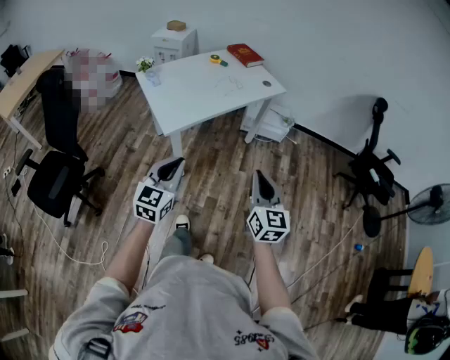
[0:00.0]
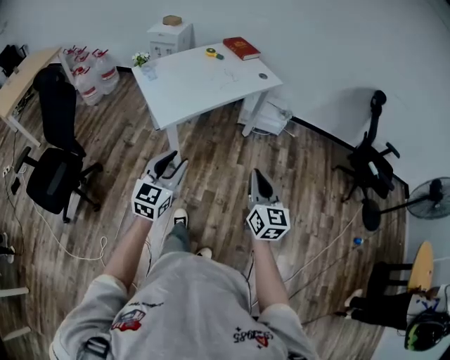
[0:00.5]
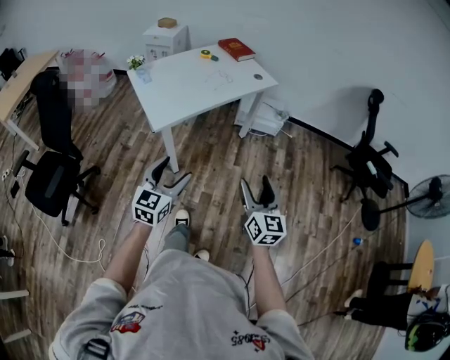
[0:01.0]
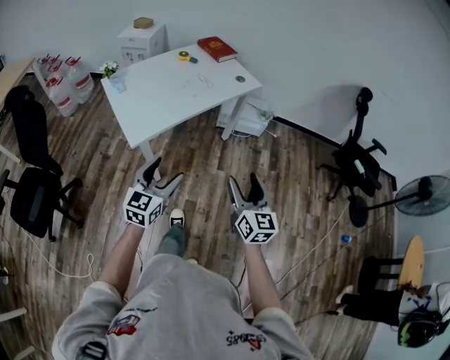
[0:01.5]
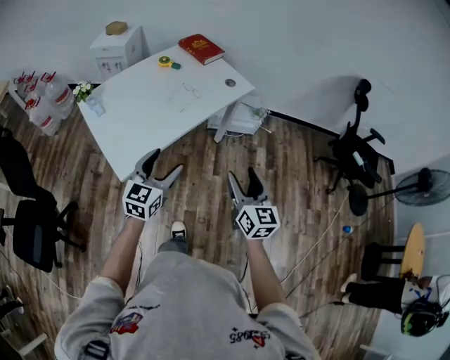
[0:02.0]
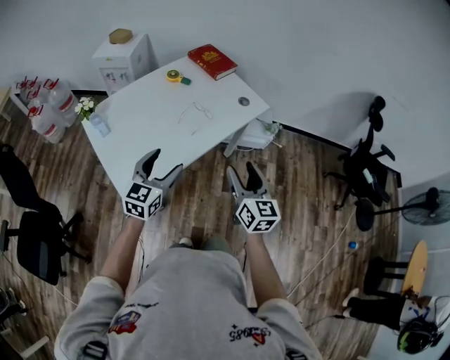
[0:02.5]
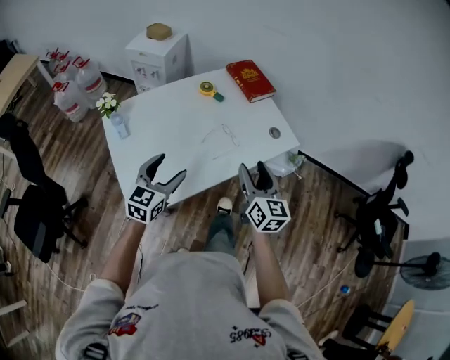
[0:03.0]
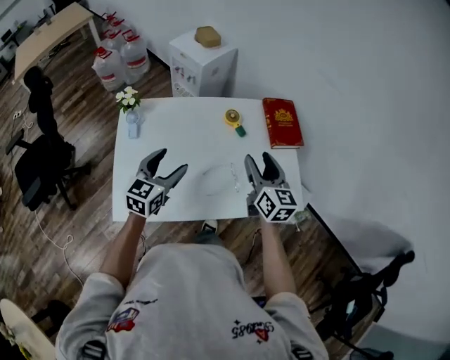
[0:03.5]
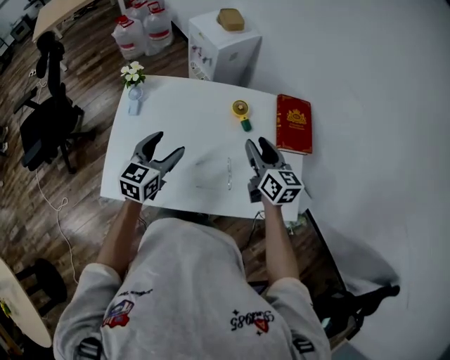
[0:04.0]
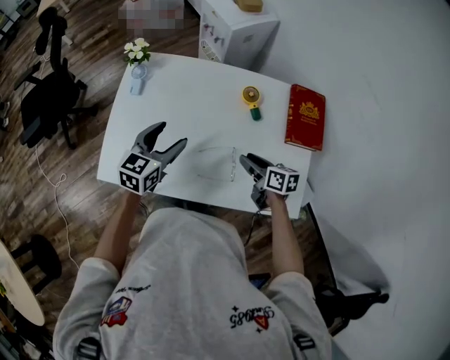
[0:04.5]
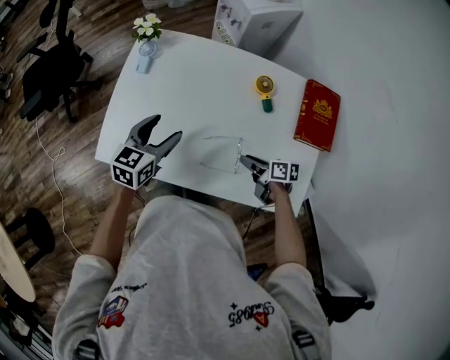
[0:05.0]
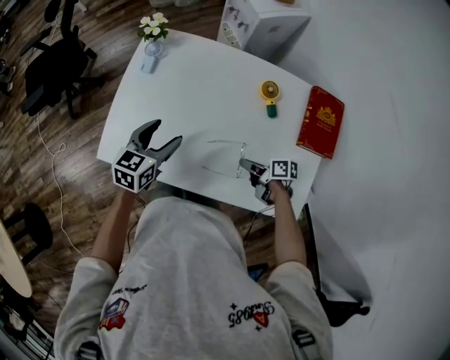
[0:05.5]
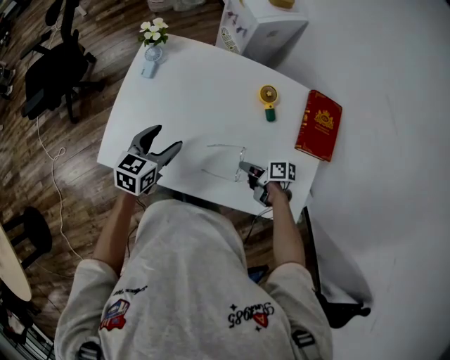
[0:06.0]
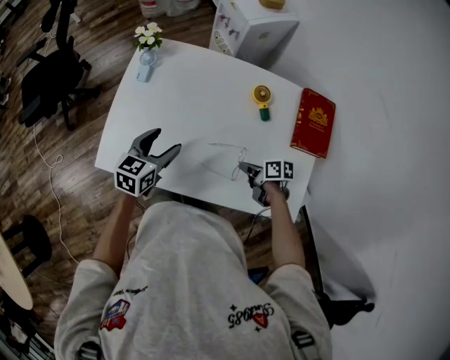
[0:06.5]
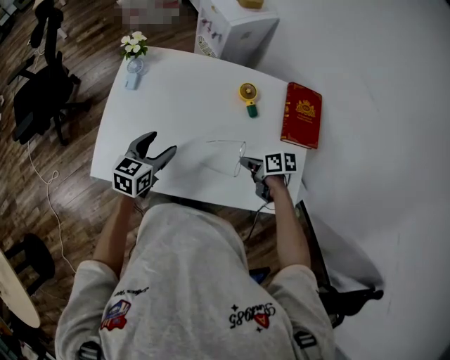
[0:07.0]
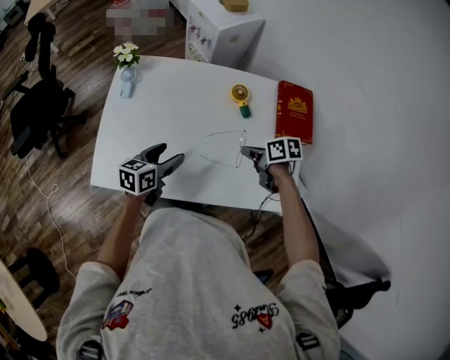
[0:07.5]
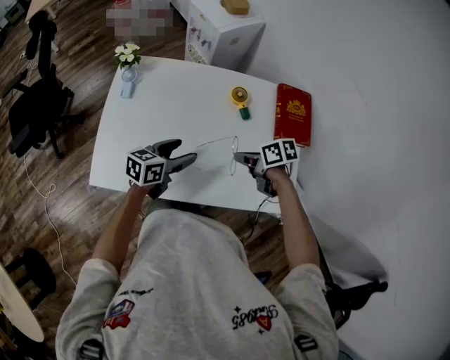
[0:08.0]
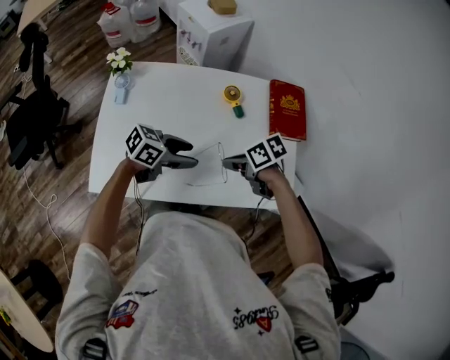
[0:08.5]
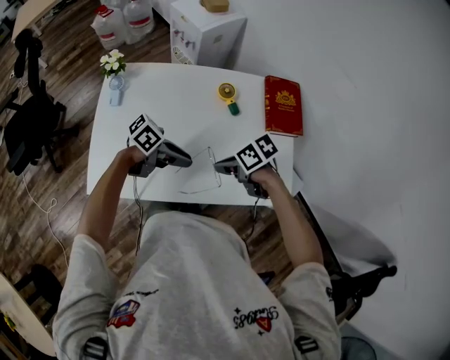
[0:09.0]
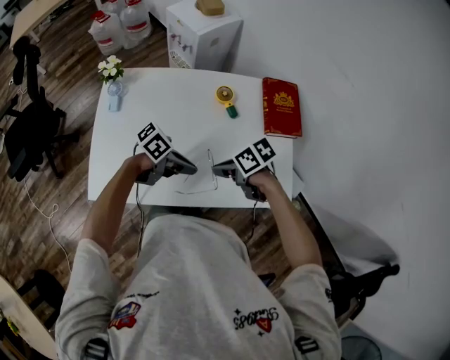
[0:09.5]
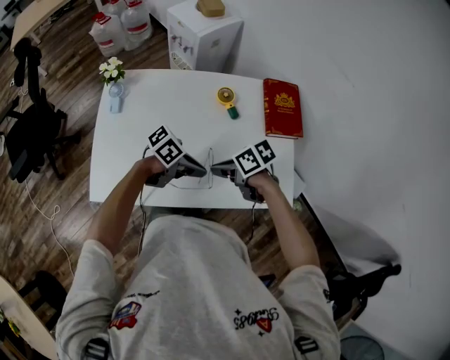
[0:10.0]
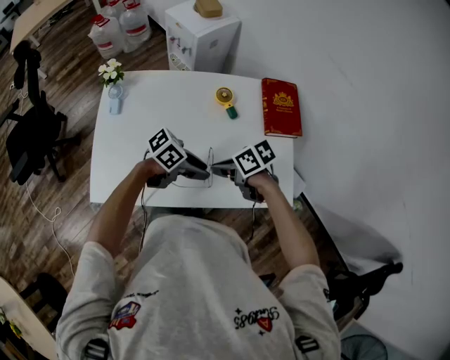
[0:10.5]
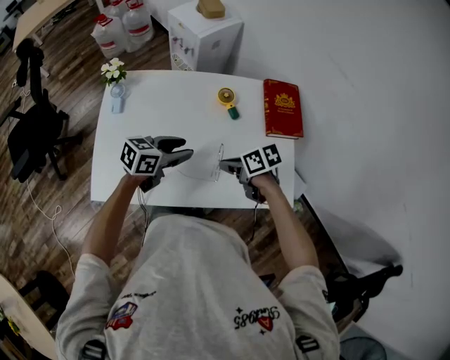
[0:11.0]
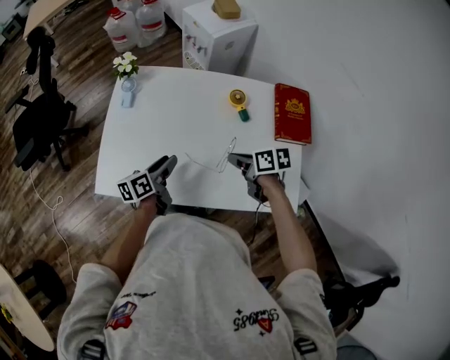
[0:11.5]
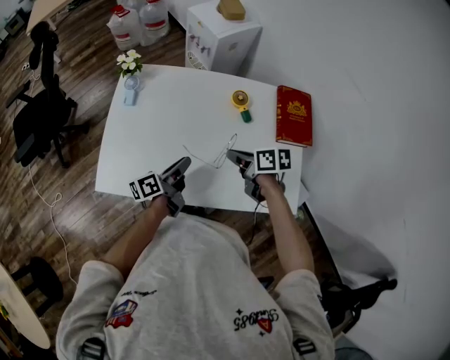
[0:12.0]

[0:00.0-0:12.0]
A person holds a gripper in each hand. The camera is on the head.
0:00.0 to 0:02.0: The grippers both shift forward by approximately 30 cm. The right gripper opens; the left gripper opens.
0:02.0 to 0:04.0: The pair of grippers is taken roughly 60 cm. The left gripper swivels some 50 degrees, while the right gripper changes its angle by some 50 degrees.
0:04.0 to 0:06.0: The right gripper is displaced downward by roughly 25 cm, turns by roughly 60 degrees, and closes up. Meanwhile the left gripper shifts about 10 cm downward.
0:06.0 to 0:08.0: The right gripper is displaced upward by about 15 cm. Meanwhile the left gripper moves approximately 10 cm, and turns by about 30 degrees.
0:08.0 to 0:10.0: The left gripper shifts by approximately 10 cm, changes its angle by roughly 50 degrees, and closes up, while the right gripper ends up some 10 cm from where it was.
0:10.0 to 0:12.0: The left gripper moves about 10 cm, and turns by roughly 80 degrees; the right gripper shifts by roughly 5 cm, and changes its angle by roughly 20 degrees.

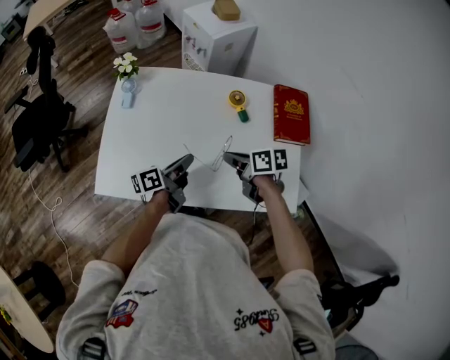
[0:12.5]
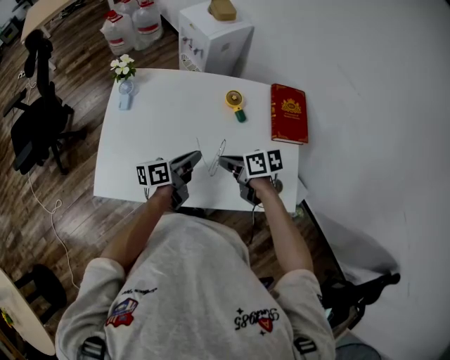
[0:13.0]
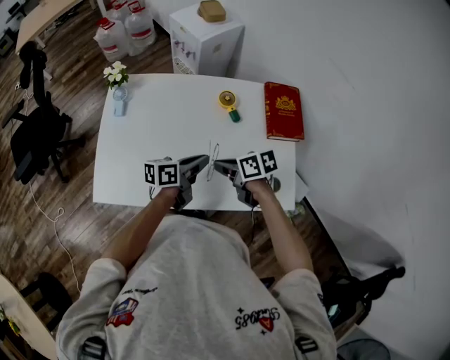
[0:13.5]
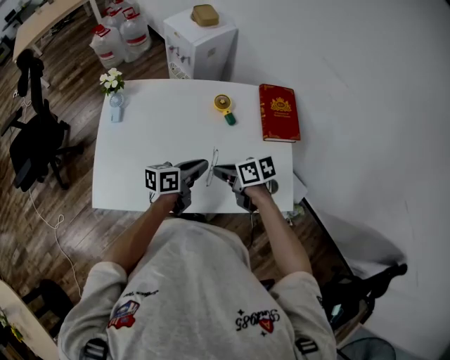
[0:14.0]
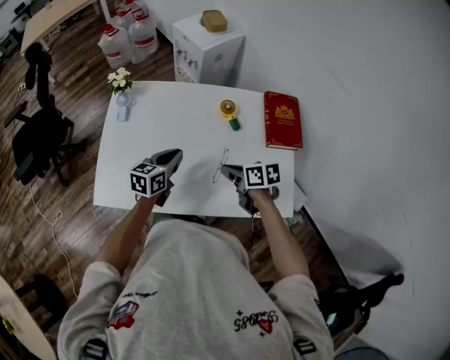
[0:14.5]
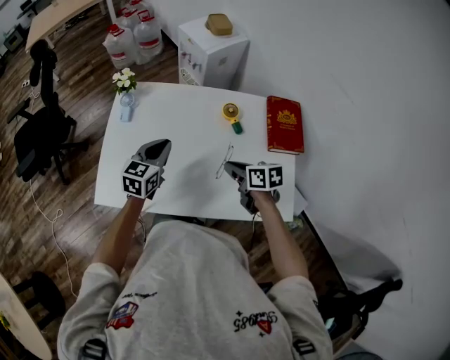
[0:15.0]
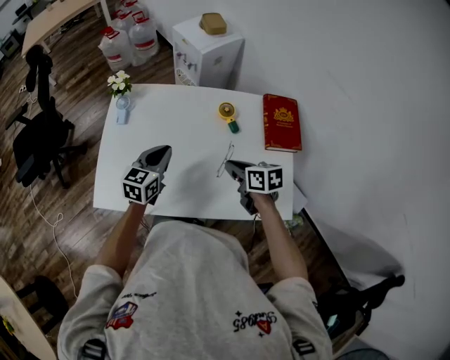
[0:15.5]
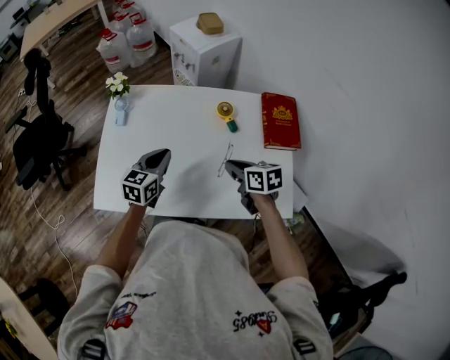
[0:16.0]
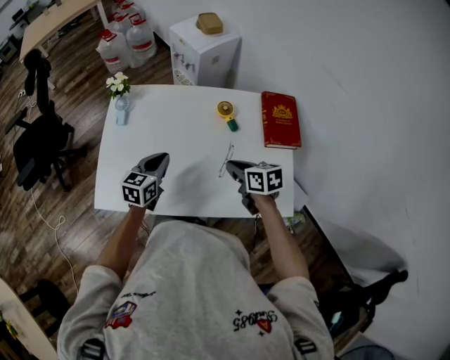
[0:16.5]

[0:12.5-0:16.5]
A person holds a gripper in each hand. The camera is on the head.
0:12.5 to 0:14.5: The left gripper rotates around the line of its fingers by about 40 degrees, clockwise from behind.

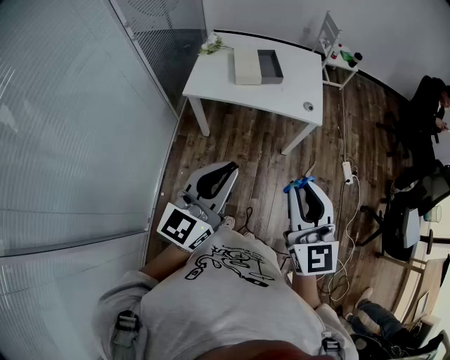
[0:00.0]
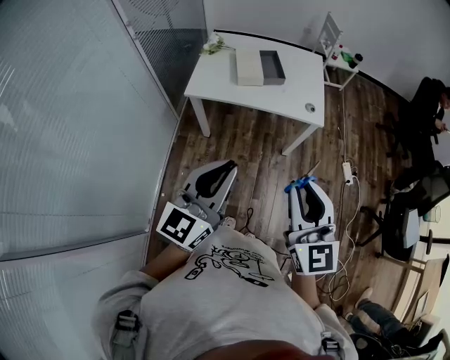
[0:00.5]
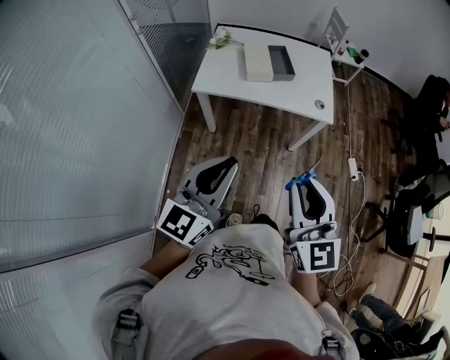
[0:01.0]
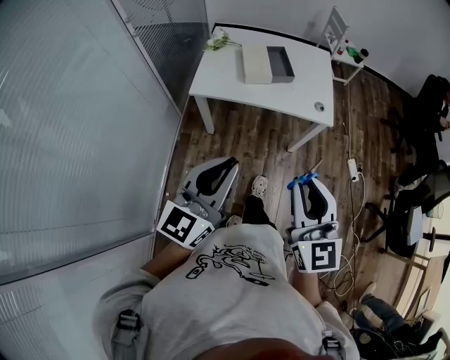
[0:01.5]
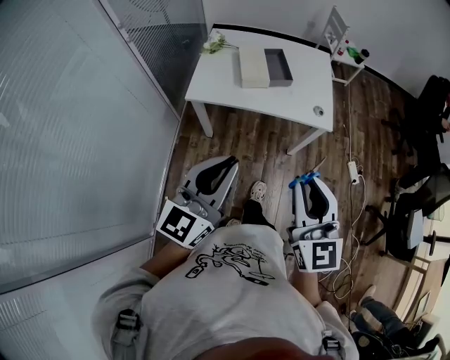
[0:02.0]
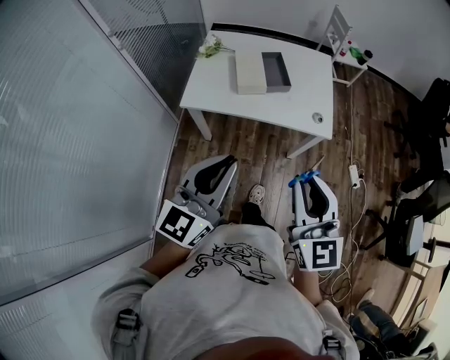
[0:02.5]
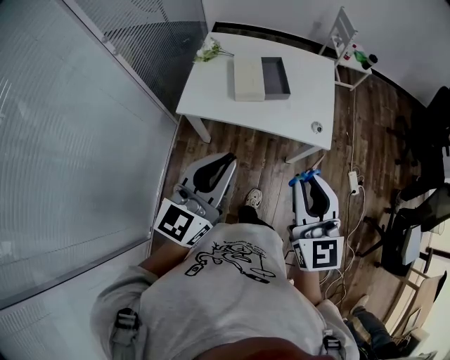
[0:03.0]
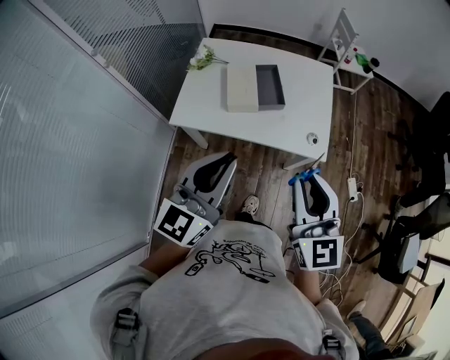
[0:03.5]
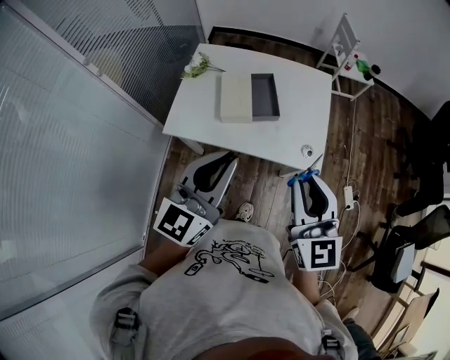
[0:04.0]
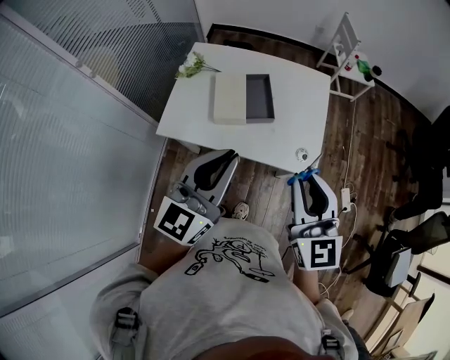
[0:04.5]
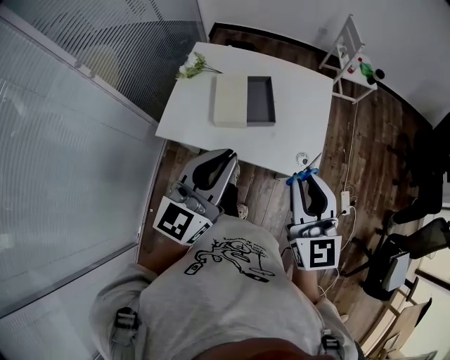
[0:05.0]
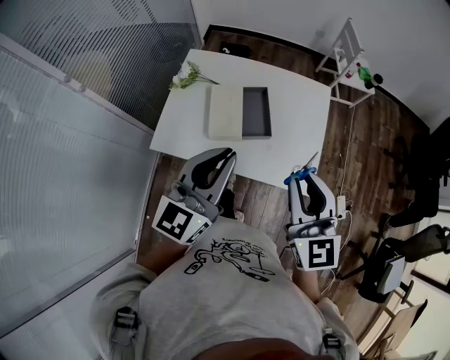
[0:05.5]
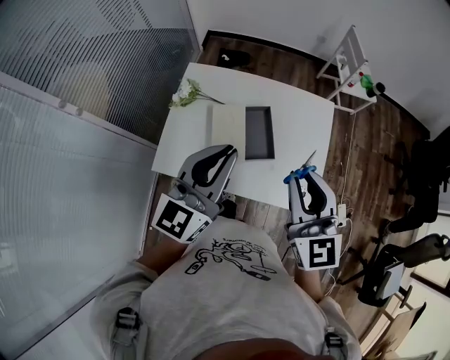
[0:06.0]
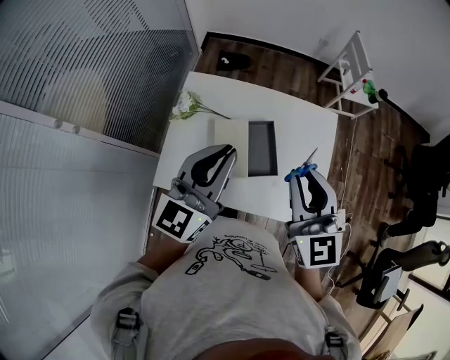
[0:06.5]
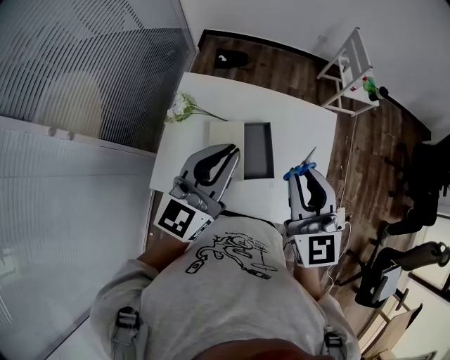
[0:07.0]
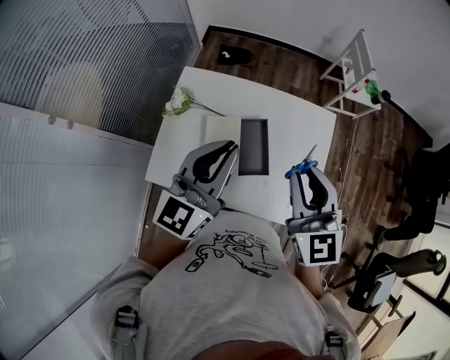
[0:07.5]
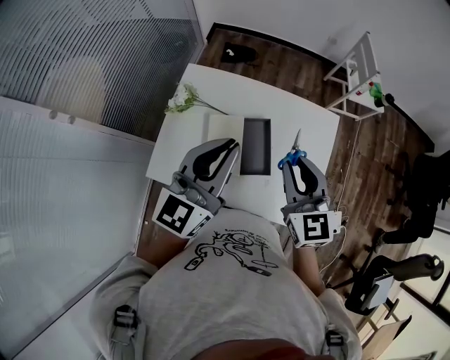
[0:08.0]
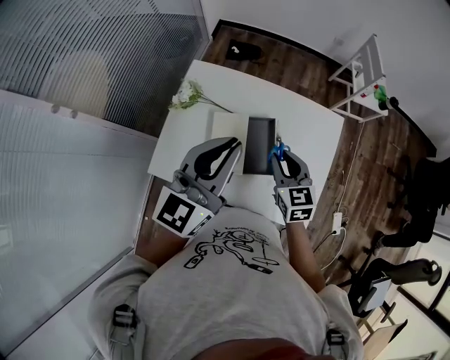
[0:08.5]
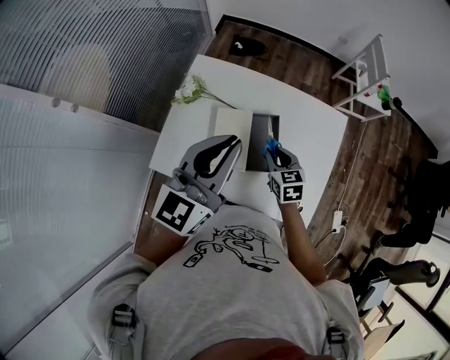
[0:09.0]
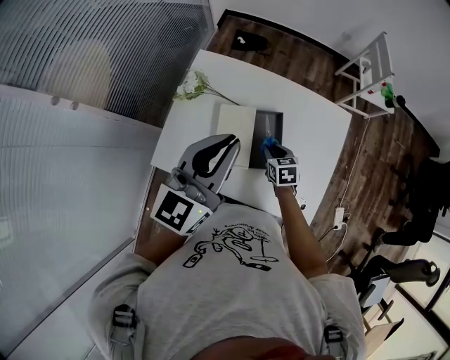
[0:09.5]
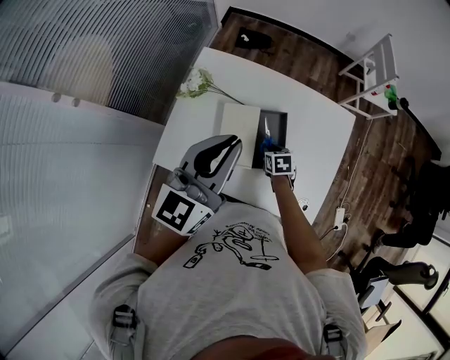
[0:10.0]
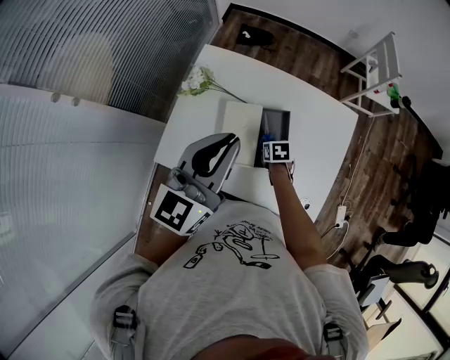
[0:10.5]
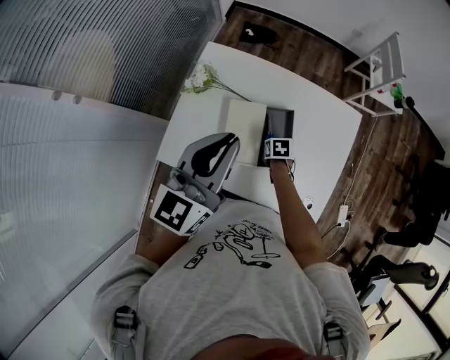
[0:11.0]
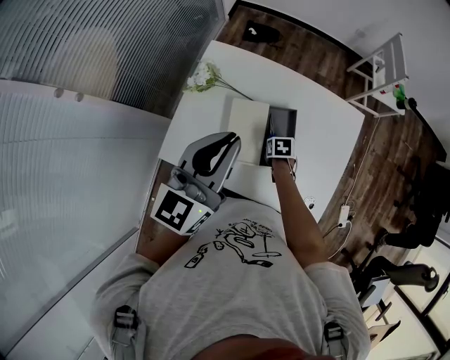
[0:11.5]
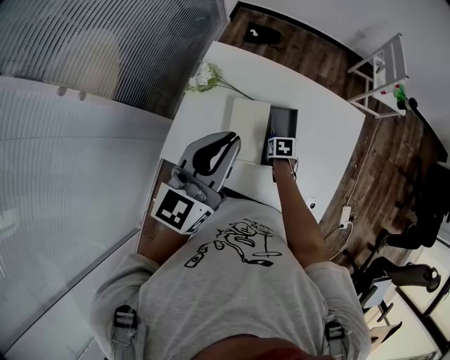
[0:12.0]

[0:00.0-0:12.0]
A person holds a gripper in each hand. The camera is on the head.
0:00.0 to 0:02.0: The left gripper goes about 10 cm forward and to the left, while the right gripper goes approximately 10 cm forward.
0:02.0 to 0:04.0: The two grippers go approximately 25 cm forward.
0:04.0 to 0:06.0: The two grippers go approximately 20 cm forward.
0:06.0 to 0:08.0: The right gripper moves forward and downward, some 15 cm; the left gripper moves forward, approximately 10 cm.
0:08.0 to 0:10.0: The right gripper heads downward, covering roughly 35 cm, and tilts its fingers some 50 degrees downward.
0:10.0 to 0:12.0: The grippers make only small movements.
